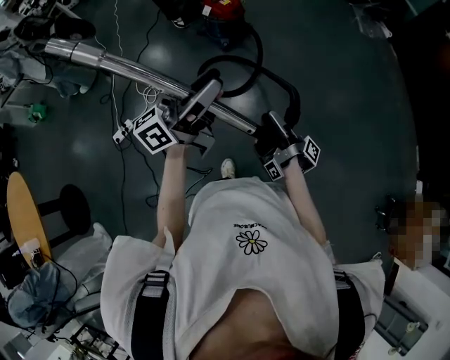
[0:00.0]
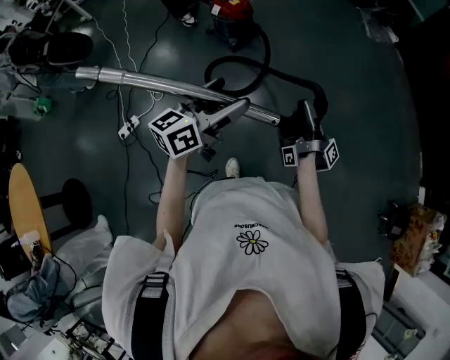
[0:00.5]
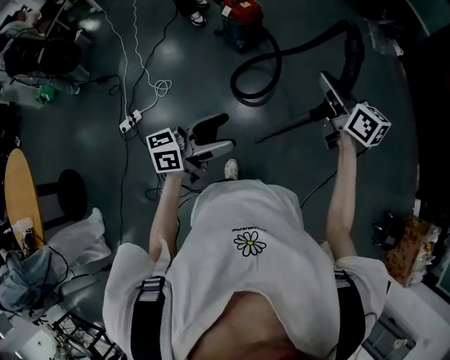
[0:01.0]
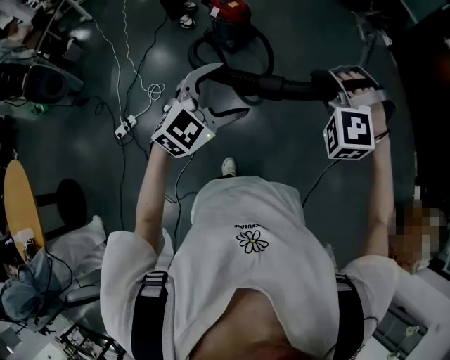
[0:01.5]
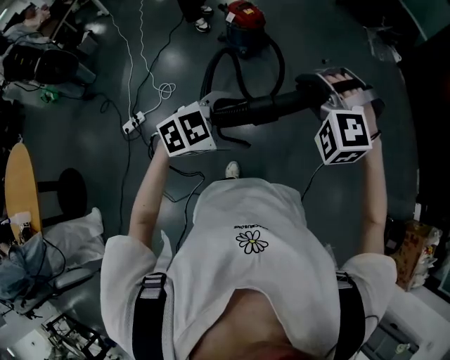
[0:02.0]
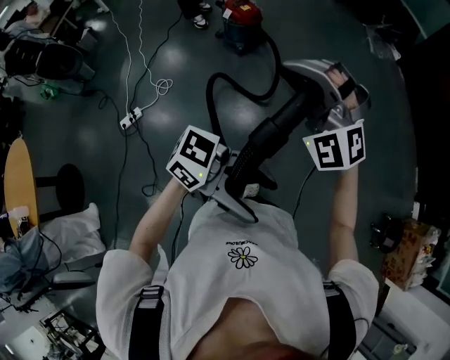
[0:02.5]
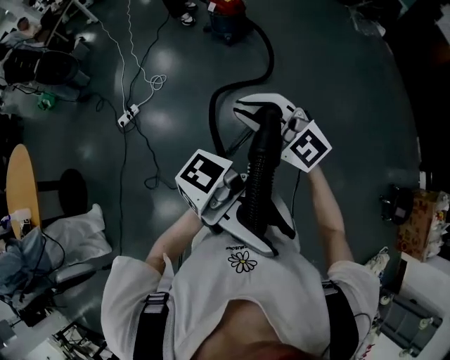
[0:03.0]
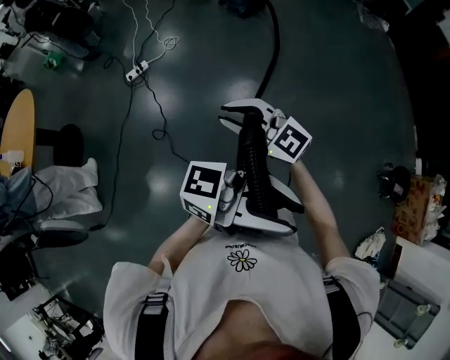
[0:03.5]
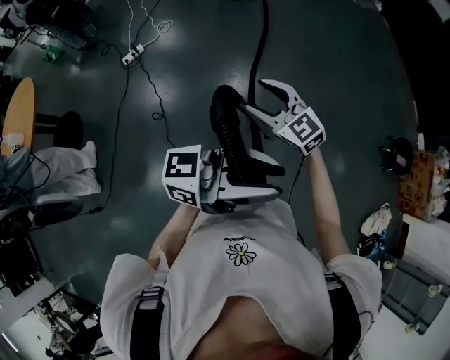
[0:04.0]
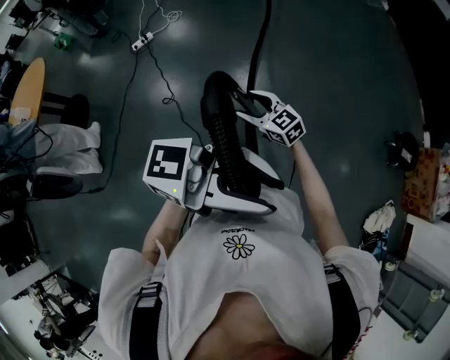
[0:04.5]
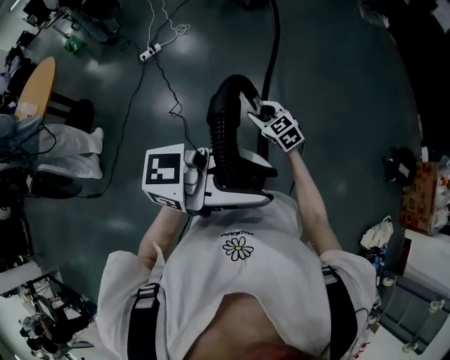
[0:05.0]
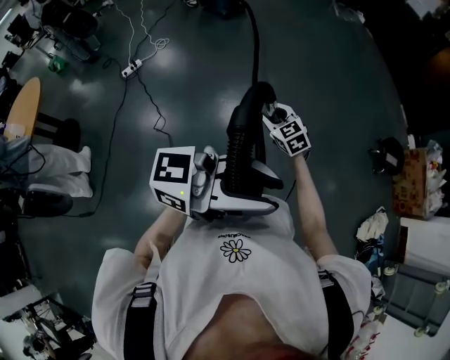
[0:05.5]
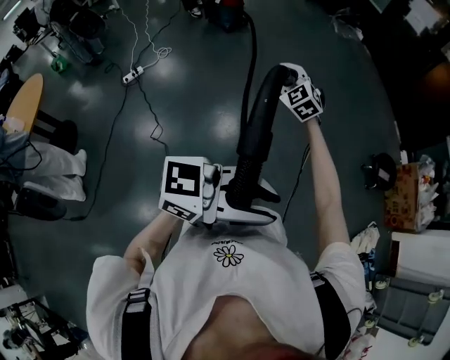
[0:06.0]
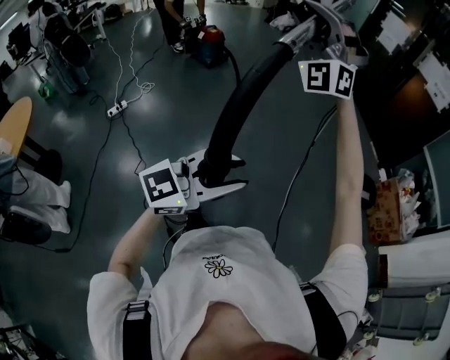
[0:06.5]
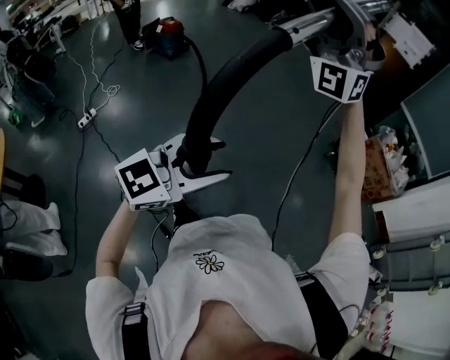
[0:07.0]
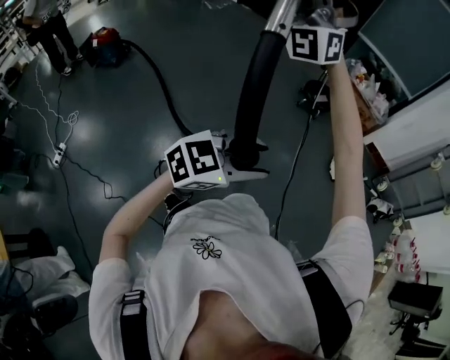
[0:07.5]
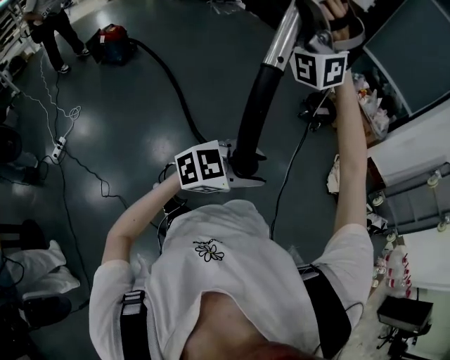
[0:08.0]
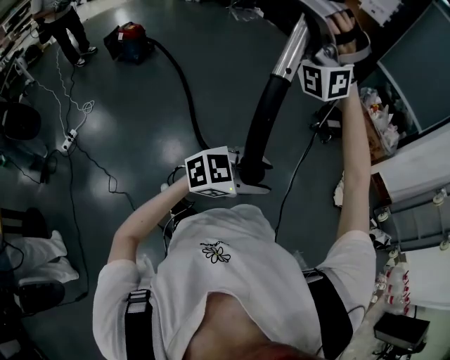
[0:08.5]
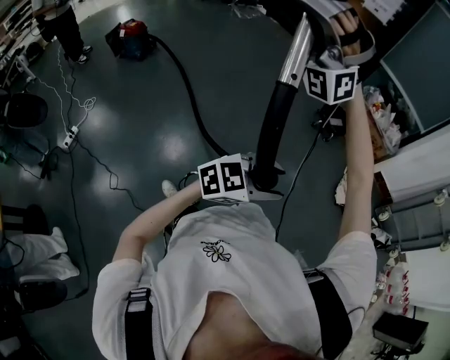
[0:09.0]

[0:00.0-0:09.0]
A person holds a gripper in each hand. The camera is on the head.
0:00.0 to 0:02.0: The left gripper goes up and down, some 10 cm each way, reversing 2 times, tips its fingers downward by roughly 60 degrees, and opens its fingers.
0:02.0 to 0:04.5: The left gripper ends up roughly 90 cm from where it was, tilts its fingers roughly 50 degrees upward, and closes its fingers.
0:04.5 to 0:07.0: The left gripper swivels approximately 40 degrees.
0:07.0 to 0:09.0: The left gripper changes place by about 25 cm, and swivels some 30 degrees.

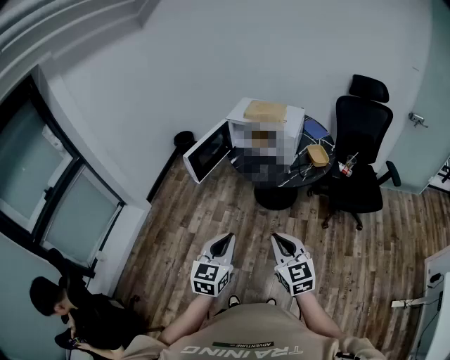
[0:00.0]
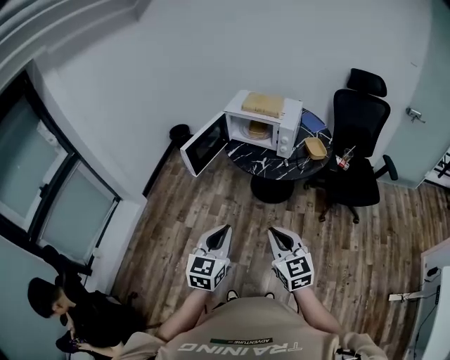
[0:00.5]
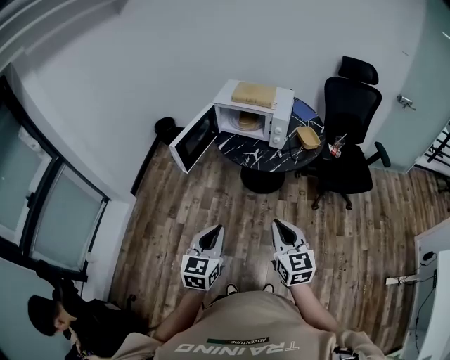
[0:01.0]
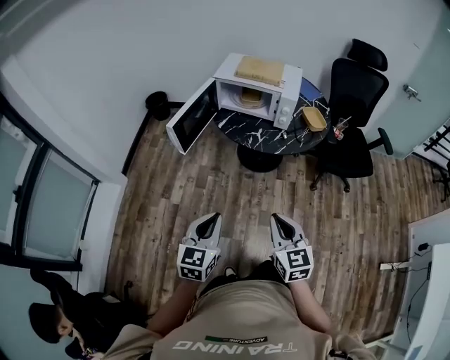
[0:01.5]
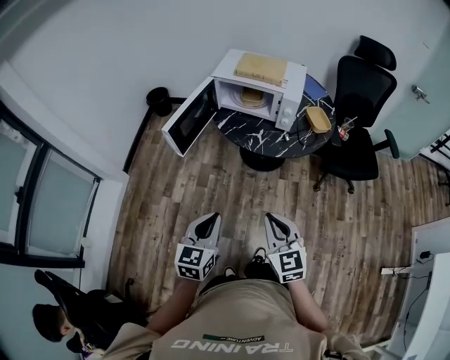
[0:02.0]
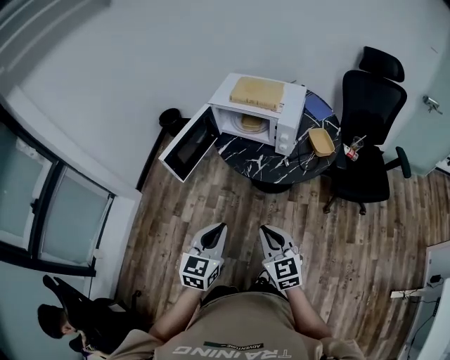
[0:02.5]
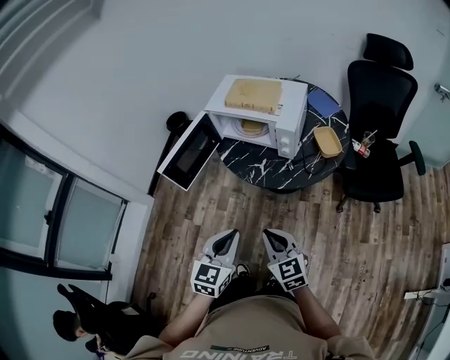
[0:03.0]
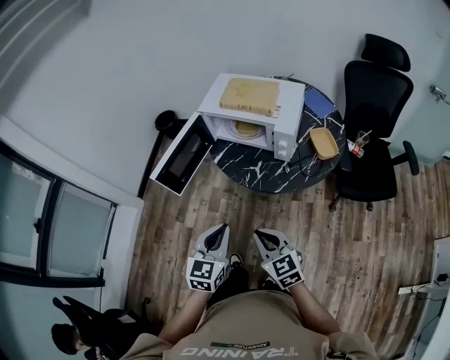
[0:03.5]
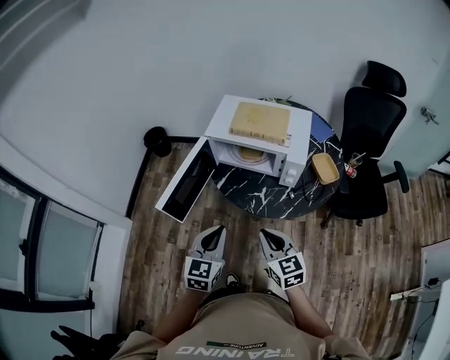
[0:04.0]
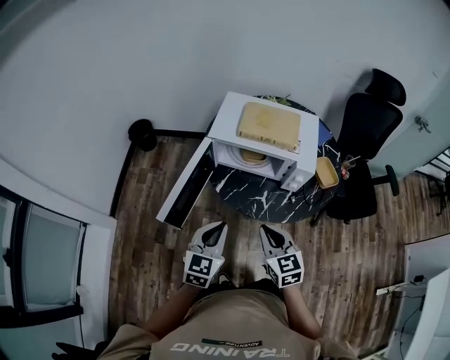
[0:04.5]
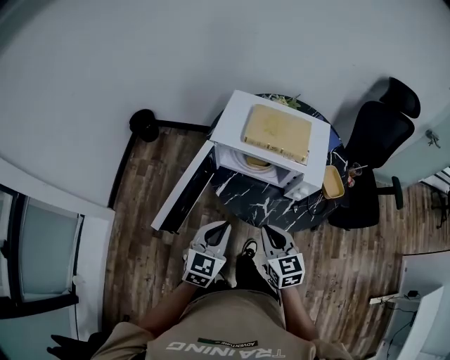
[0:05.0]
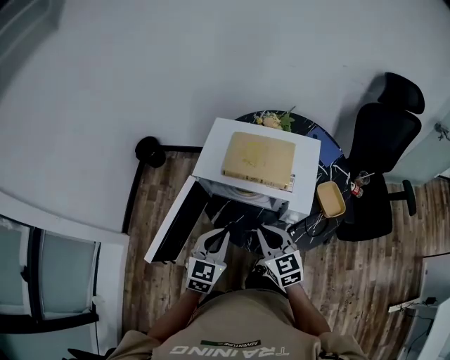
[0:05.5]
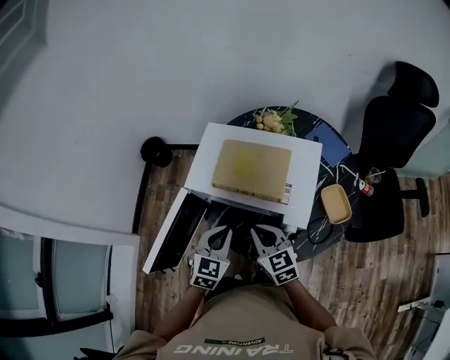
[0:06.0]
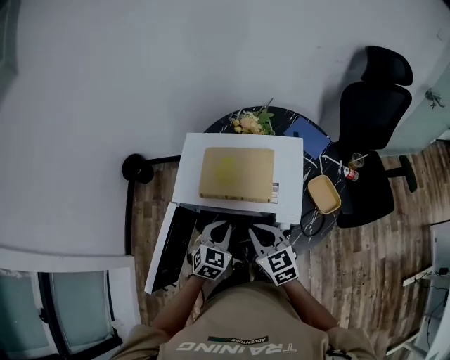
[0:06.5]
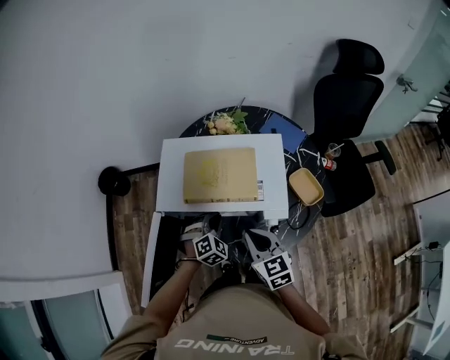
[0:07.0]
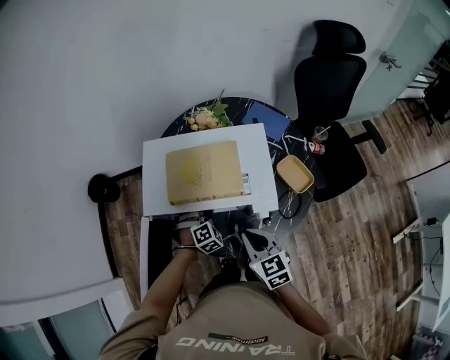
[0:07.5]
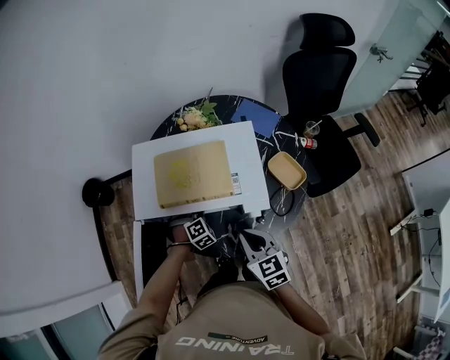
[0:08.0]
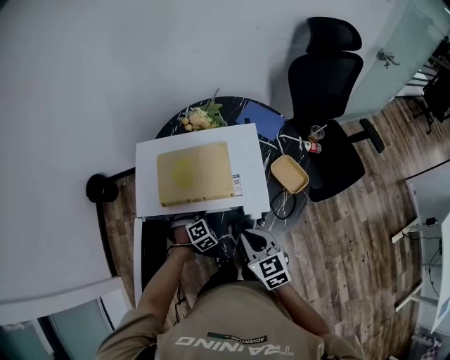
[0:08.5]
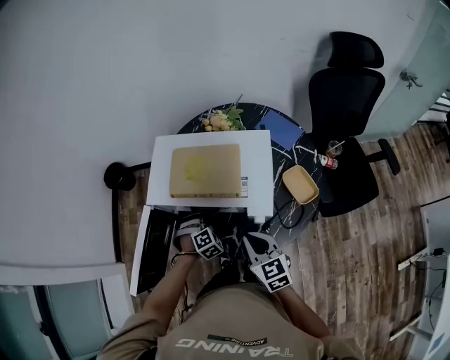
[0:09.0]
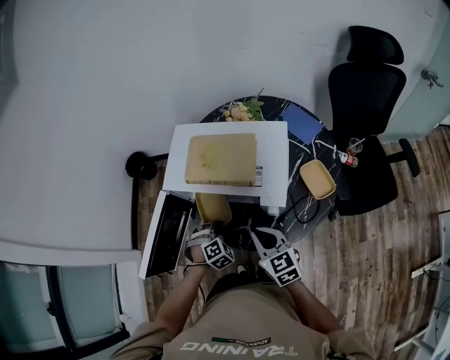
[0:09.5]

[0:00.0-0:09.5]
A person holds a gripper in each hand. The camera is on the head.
0:00.0 to 0:02.0: Both grippers move forward, downward and to the left, roughly 15 cm.
0:02.0 to 0:04.0: Both grippers travel together forward, roughly 25 cm.
0:04.0 to 0:05.5: Both grippers move forward, some 20 cm.
0:05.5 to 0:07.5: The left gripper goes about 25 cm downward, forward and to the right, and twists some 50 degrees clockwise, seen from behind; the right gripper changes place by roughly 5 cm.
0:07.5 to 0:09.5: The left gripper heads backward, covering some 10 cm.

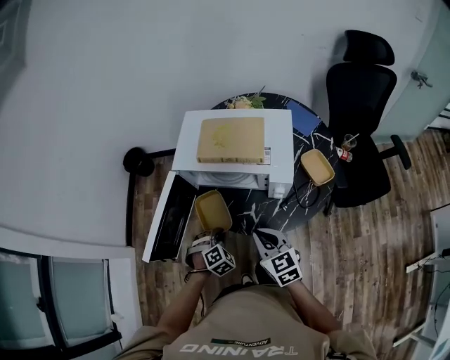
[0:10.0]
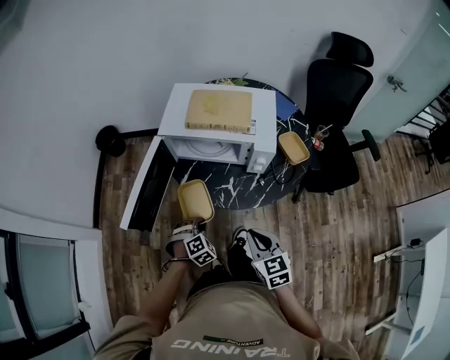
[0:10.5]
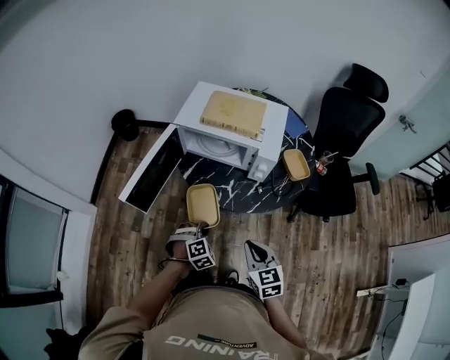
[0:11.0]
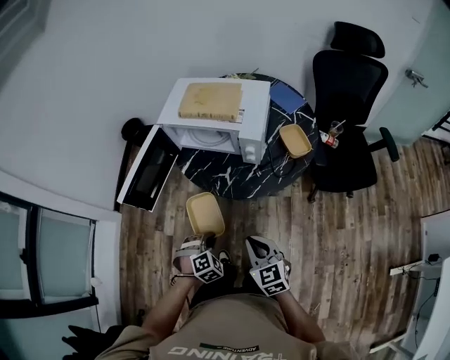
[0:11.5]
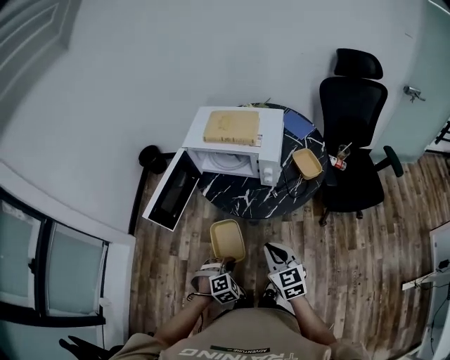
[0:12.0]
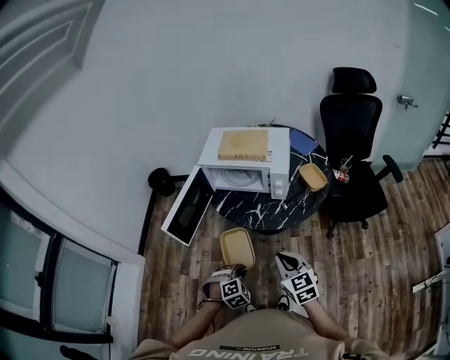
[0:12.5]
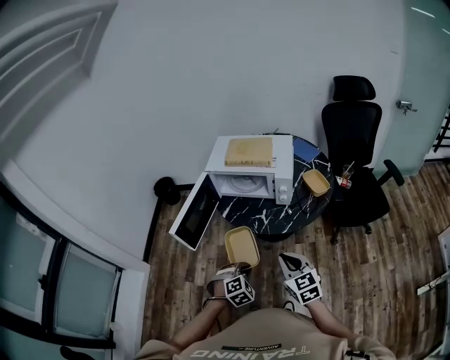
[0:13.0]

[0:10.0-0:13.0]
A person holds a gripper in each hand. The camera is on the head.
0:10.0 to 0:11.5: Both grippers travel together backward, roughly 20 cm.
0:11.5 to 0:13.0: Both grippers travel together upward, about 5 cm.

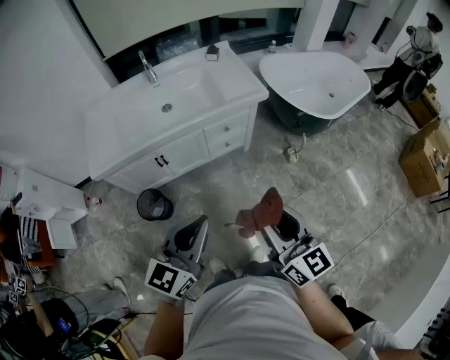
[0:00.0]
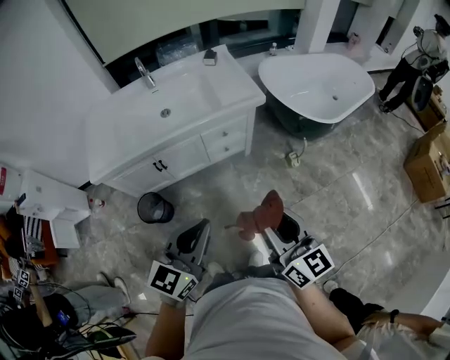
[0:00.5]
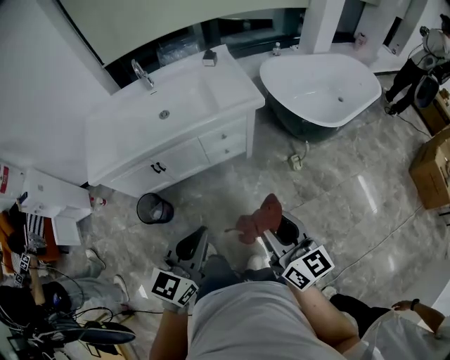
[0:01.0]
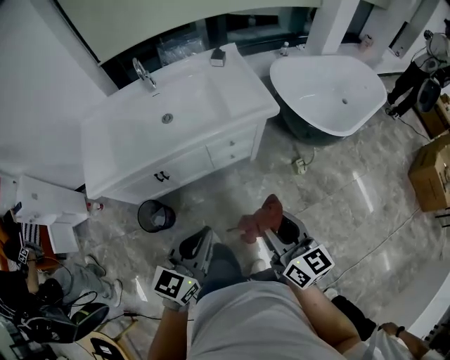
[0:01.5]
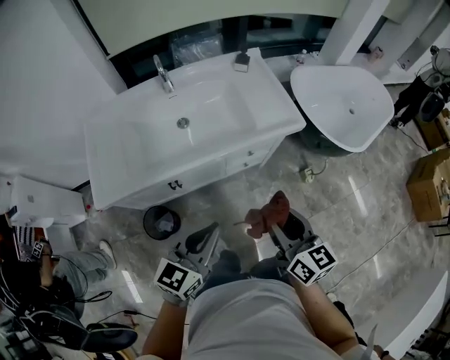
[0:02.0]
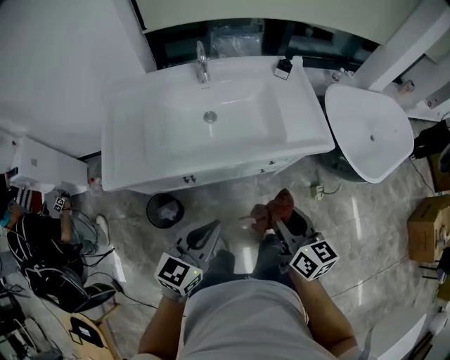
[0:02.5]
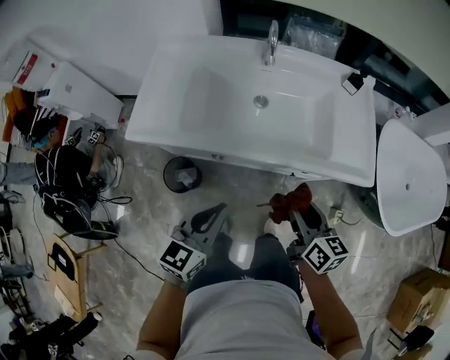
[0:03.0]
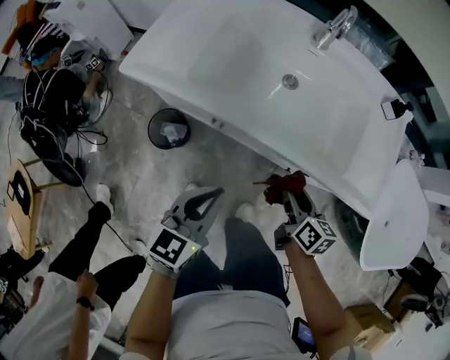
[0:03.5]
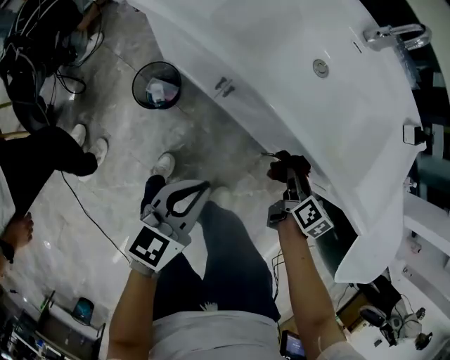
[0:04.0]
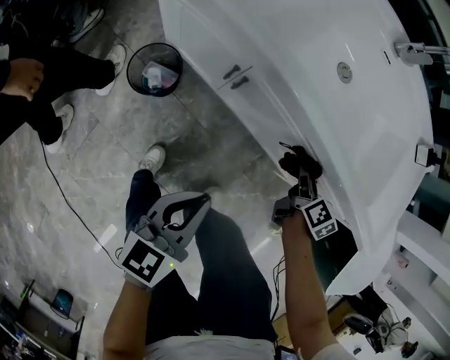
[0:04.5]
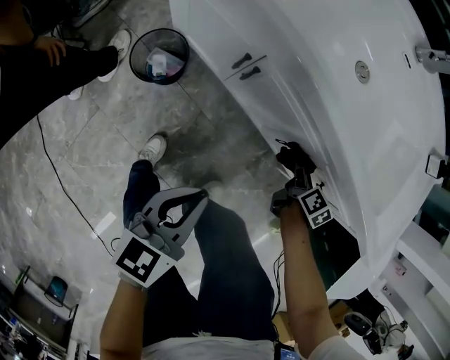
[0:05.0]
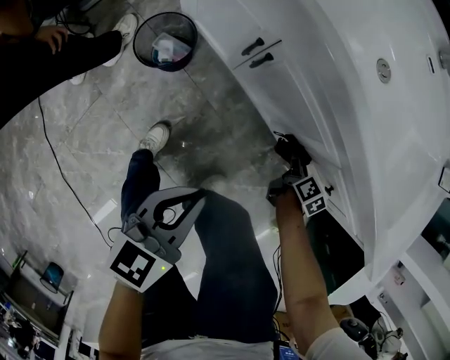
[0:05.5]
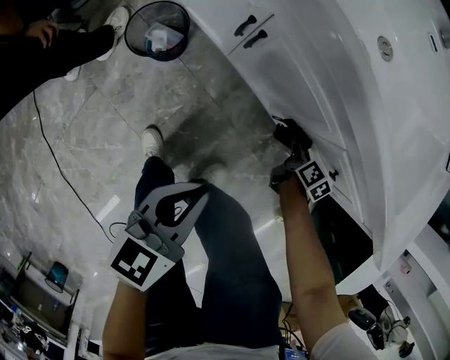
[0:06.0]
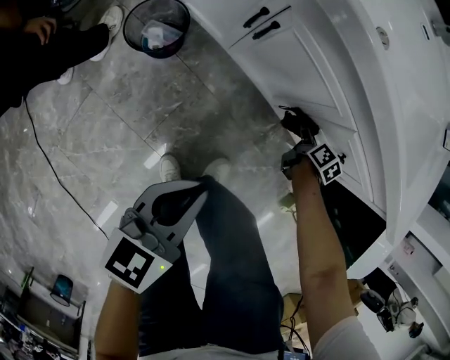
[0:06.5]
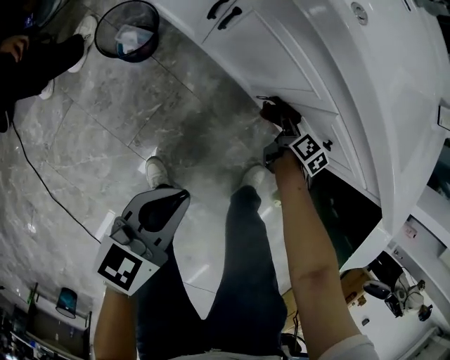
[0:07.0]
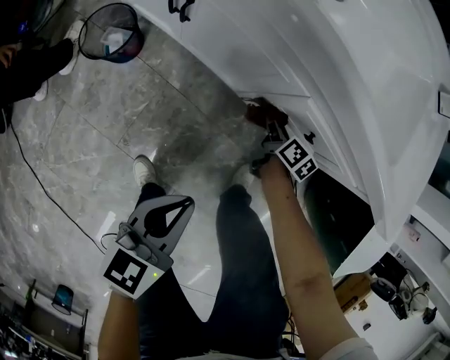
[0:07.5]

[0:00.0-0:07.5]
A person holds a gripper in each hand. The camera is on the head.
0:00.0 to 0:02.0: Both grippers travel together forward, roughly 20 cm.
0:02.0 to 0:04.0: The two grippers go roughly 30 cm downward. The right gripper changes its angle by approximately 40 degrees, while the left gripper turns by approximately 50 degrees.
0:04.0 to 0:05.5: The right gripper goes some 25 cm downward, while the left gripper travels downward by about 10 cm.
0:05.5 to 0:07.5: The left gripper shifts about 10 cm to the right.
